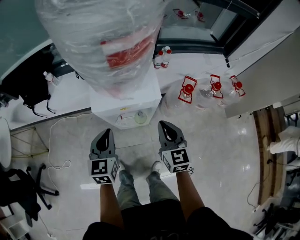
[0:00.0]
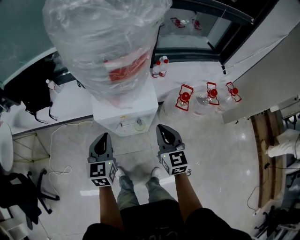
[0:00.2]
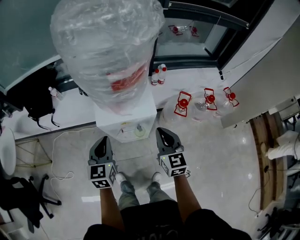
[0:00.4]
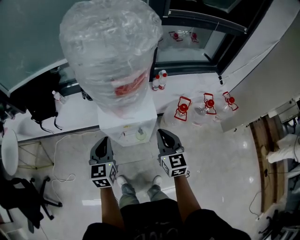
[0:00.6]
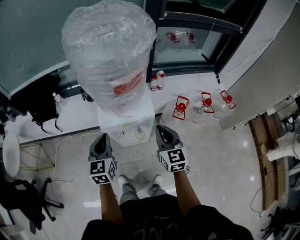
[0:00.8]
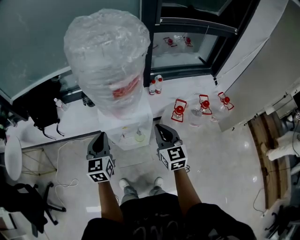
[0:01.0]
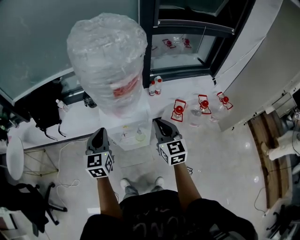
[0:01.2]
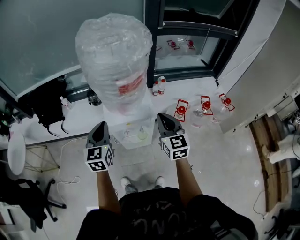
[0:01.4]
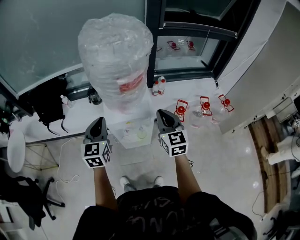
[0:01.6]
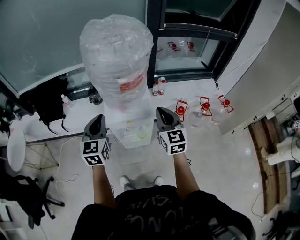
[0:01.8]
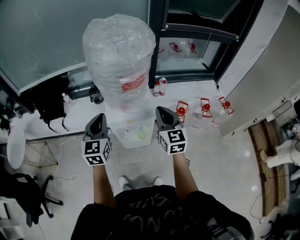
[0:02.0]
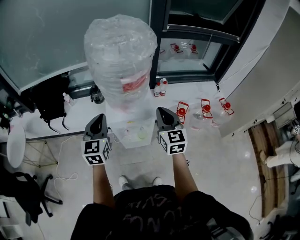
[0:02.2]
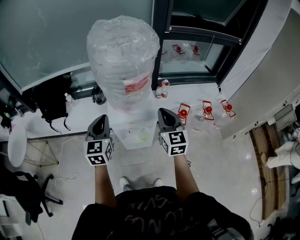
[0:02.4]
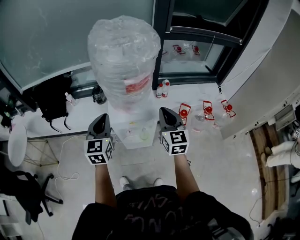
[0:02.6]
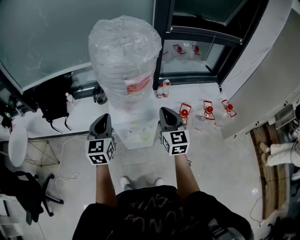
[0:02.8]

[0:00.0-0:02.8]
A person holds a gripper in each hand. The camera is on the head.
0:00.0 to 0:01.4: The grippers both shift upward by about 20 cm.
0:01.4 to 0:02.8: The grippers make only small movements.

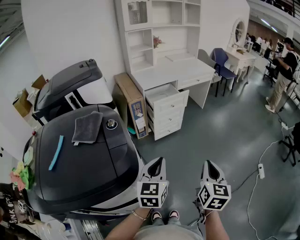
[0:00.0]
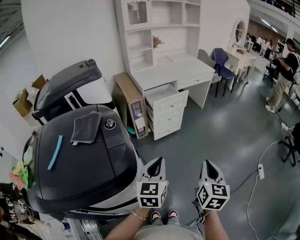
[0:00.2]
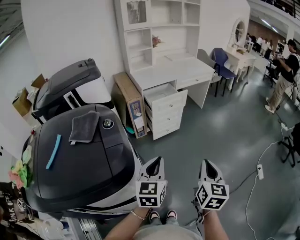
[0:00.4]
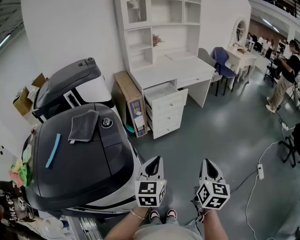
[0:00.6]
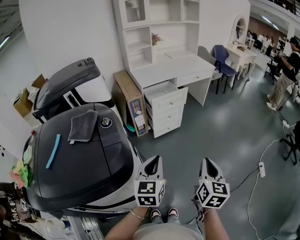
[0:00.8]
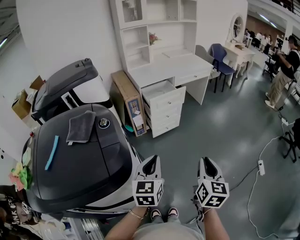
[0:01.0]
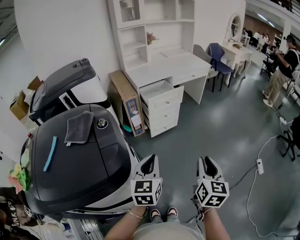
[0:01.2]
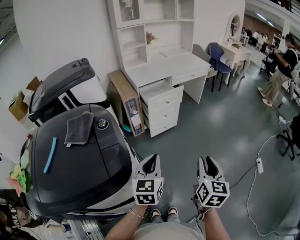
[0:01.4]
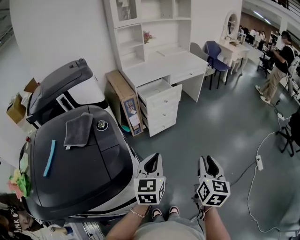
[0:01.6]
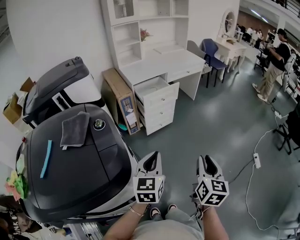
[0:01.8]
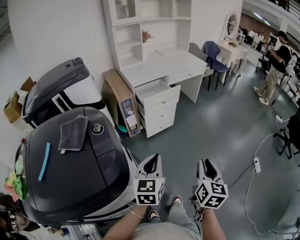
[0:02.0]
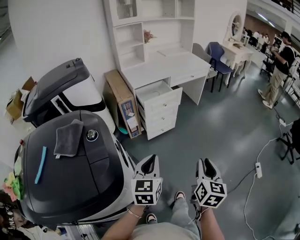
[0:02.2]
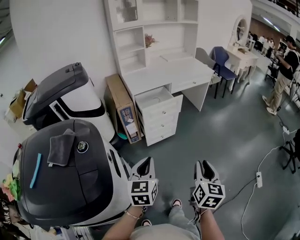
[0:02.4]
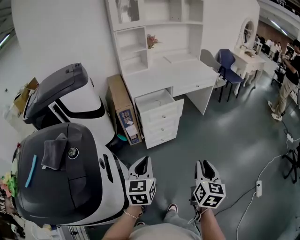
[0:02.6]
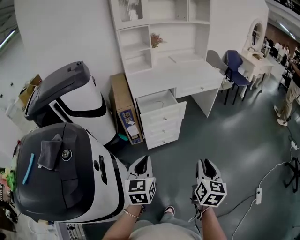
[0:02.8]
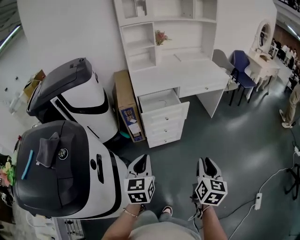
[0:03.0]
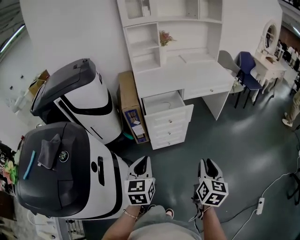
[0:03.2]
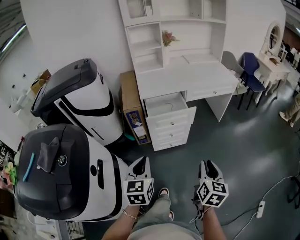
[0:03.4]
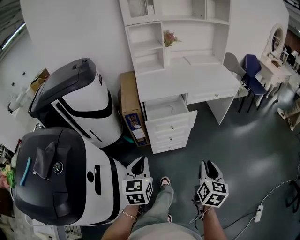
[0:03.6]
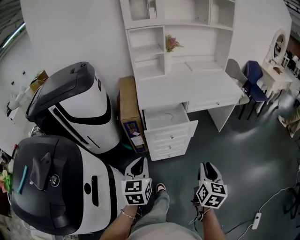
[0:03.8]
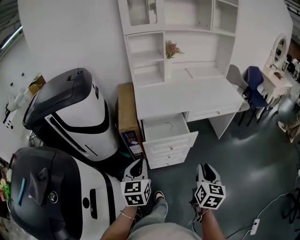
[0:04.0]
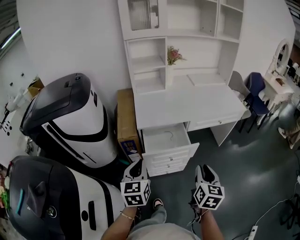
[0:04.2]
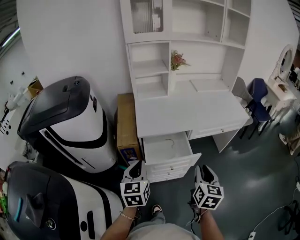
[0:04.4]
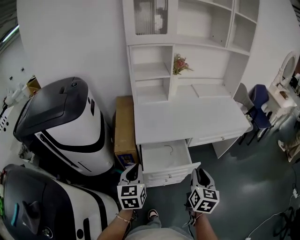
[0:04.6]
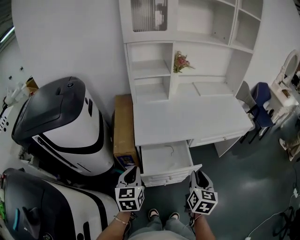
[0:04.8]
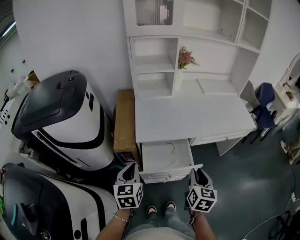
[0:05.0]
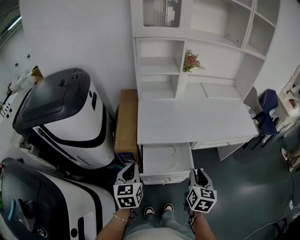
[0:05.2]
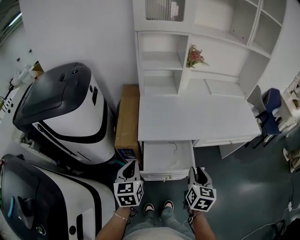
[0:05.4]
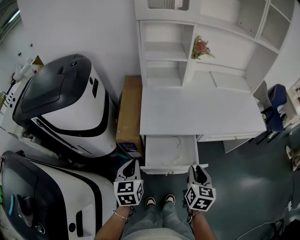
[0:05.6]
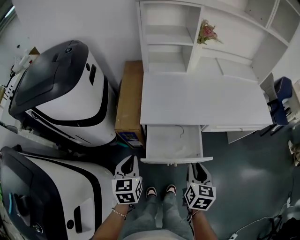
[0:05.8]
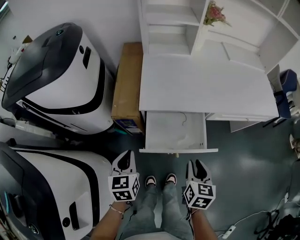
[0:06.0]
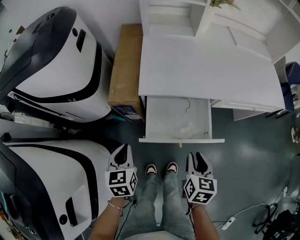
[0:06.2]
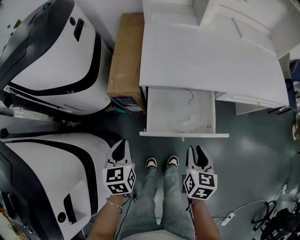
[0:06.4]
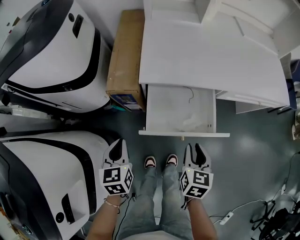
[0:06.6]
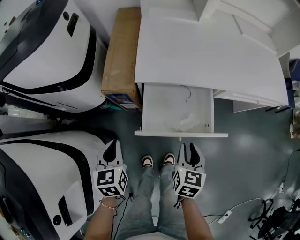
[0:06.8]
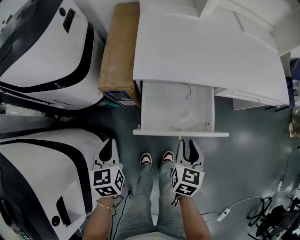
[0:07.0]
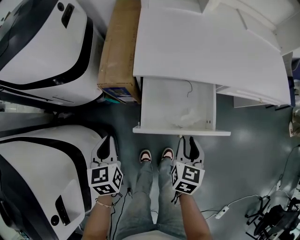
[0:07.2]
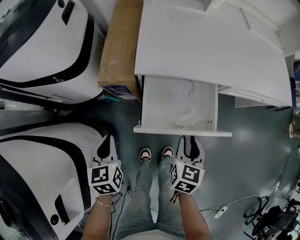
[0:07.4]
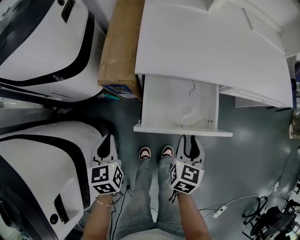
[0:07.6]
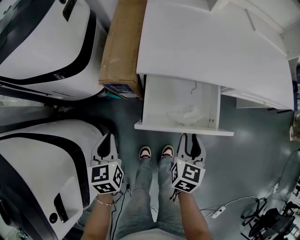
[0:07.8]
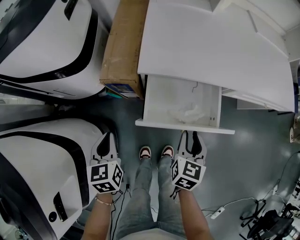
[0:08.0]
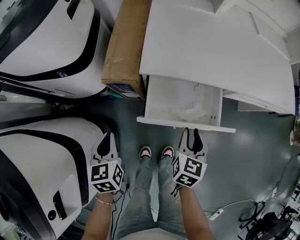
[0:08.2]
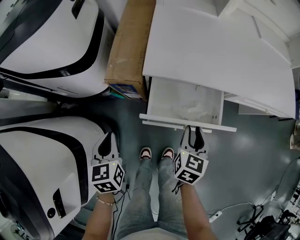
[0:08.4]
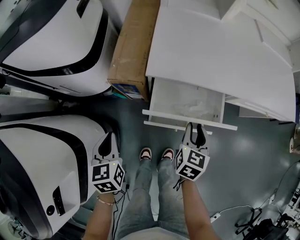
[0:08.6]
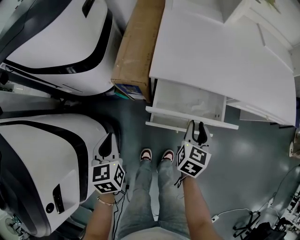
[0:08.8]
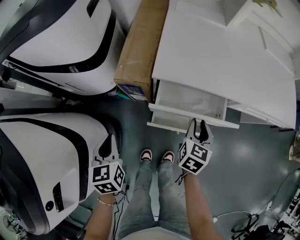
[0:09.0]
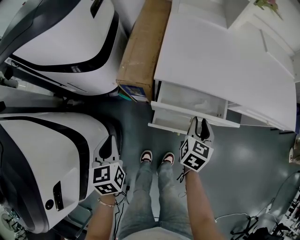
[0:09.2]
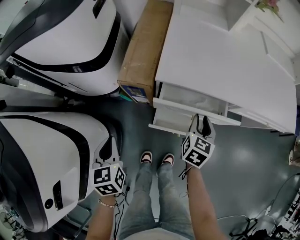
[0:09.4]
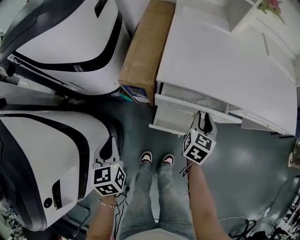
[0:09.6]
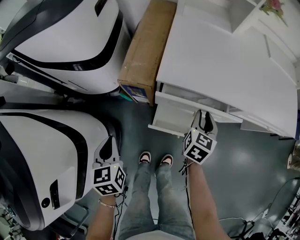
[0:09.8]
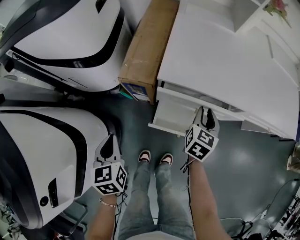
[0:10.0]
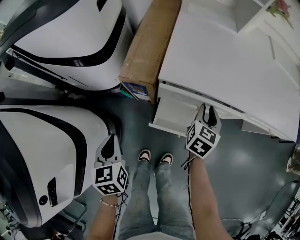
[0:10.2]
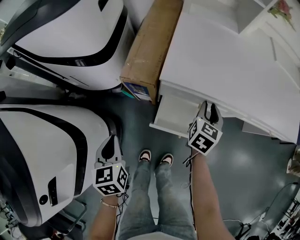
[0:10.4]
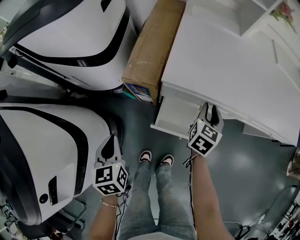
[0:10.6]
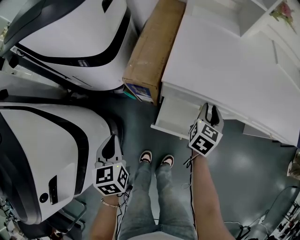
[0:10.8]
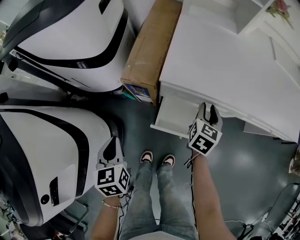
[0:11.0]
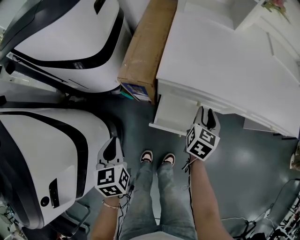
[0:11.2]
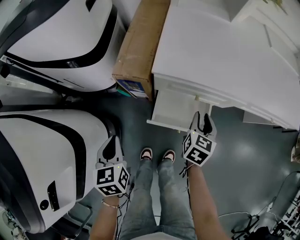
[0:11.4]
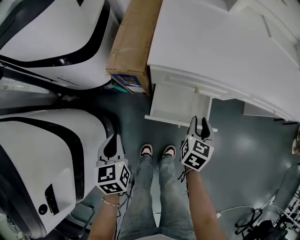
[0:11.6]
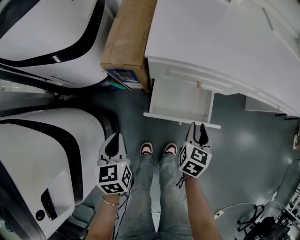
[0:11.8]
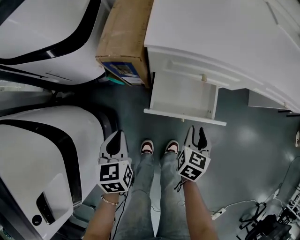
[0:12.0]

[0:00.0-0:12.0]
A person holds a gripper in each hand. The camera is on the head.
0:00.0 to 0:01.6: The right gripper opens up.
0:01.6 to 0:03.0: The left gripper travels forward by about 20 cm, and turns by some 20 degrees; the right gripper moves forward and to the right, some 30 cm.
0:03.0 to 0:04.4: Both grippers move forward, roughly 35 cm.
0:04.4 to 0:06.0: The left gripper is displaced downward by some 15 cm. Meanwhile the right gripper moves downward and forward, about 15 cm, and rotates approximately 20 degrees.
0:06.0 to 0:07.6: The right gripper travels downward by some 10 cm; the left gripper heads downward and to the left, covering about 10 cm.
0:07.6 to 0:09.0: The right gripper shifts some 10 cm forward.
0:09.0 to 0:10.4: The right gripper goes approximately 10 cm forward.
0:10.4 to 0:12.0: The left gripper goes some 10 cm downward. Meanwhile the right gripper shifts approximately 25 cm backward and downward.

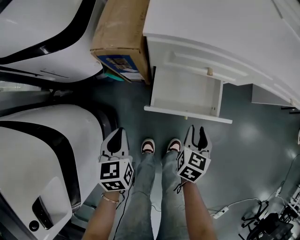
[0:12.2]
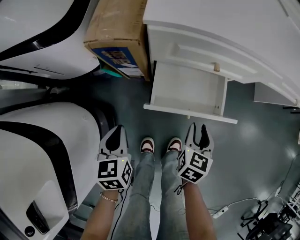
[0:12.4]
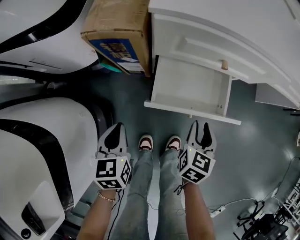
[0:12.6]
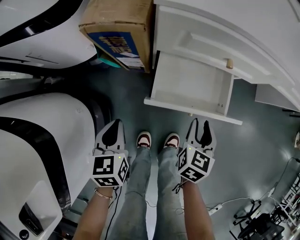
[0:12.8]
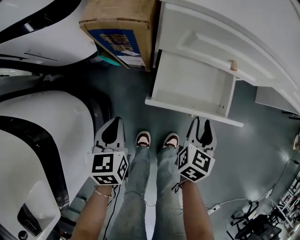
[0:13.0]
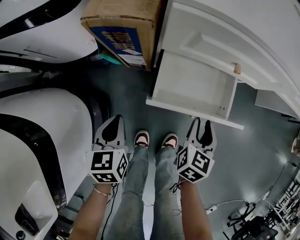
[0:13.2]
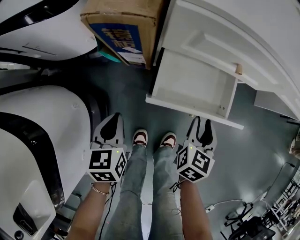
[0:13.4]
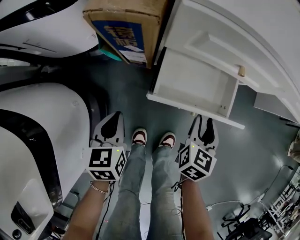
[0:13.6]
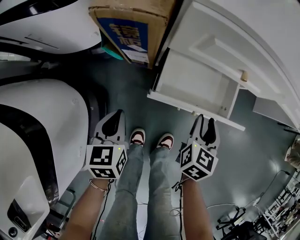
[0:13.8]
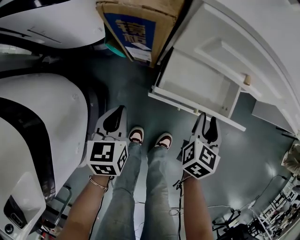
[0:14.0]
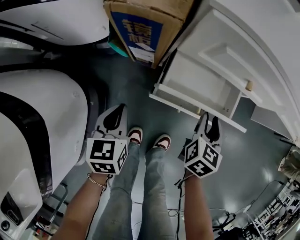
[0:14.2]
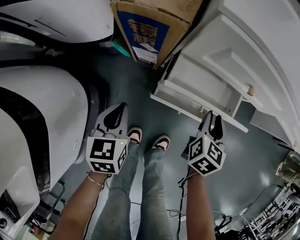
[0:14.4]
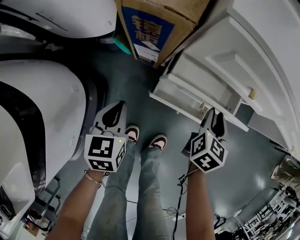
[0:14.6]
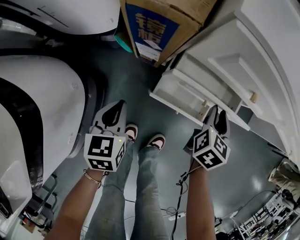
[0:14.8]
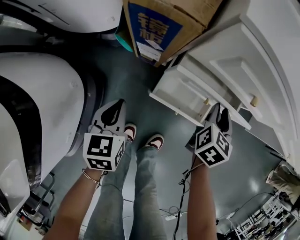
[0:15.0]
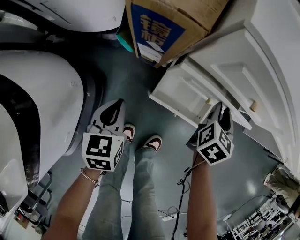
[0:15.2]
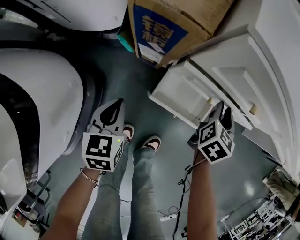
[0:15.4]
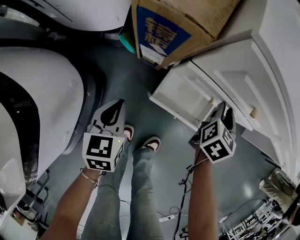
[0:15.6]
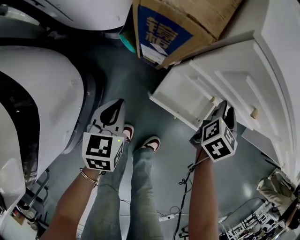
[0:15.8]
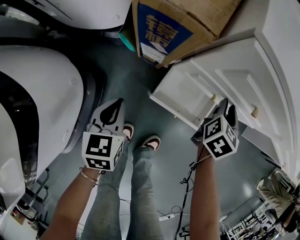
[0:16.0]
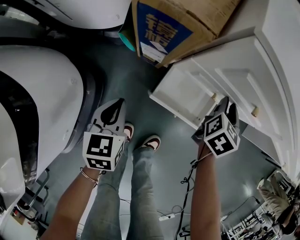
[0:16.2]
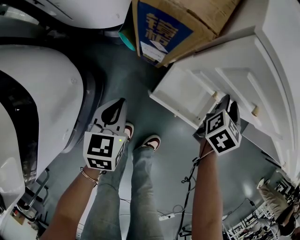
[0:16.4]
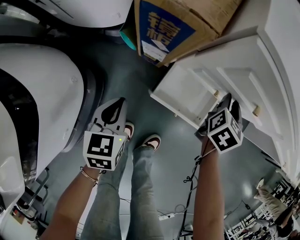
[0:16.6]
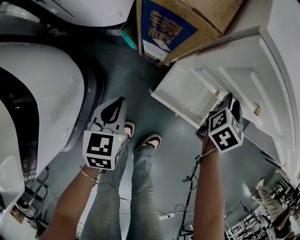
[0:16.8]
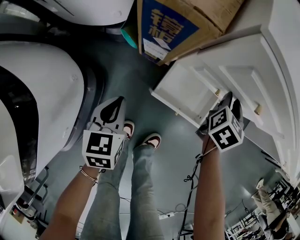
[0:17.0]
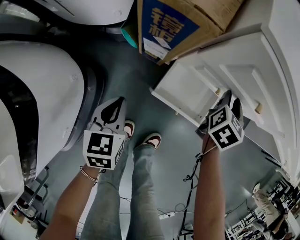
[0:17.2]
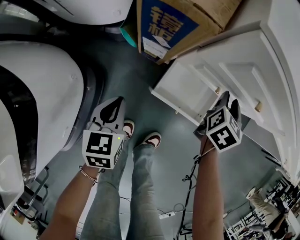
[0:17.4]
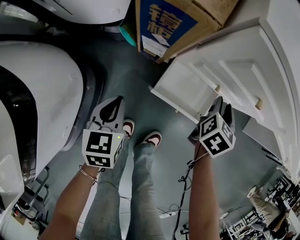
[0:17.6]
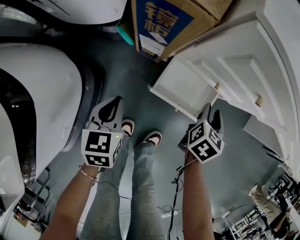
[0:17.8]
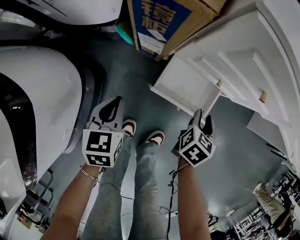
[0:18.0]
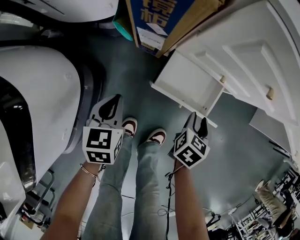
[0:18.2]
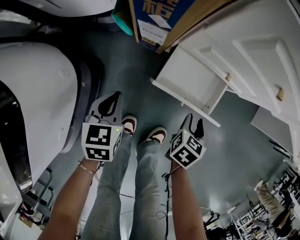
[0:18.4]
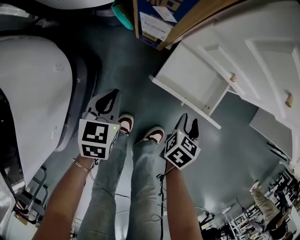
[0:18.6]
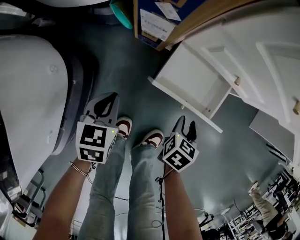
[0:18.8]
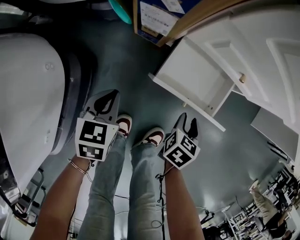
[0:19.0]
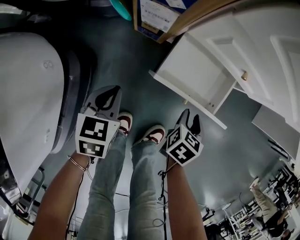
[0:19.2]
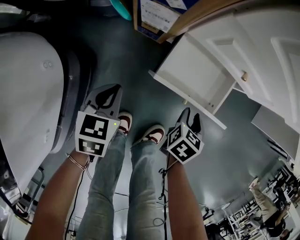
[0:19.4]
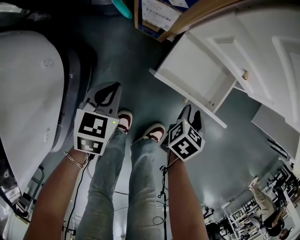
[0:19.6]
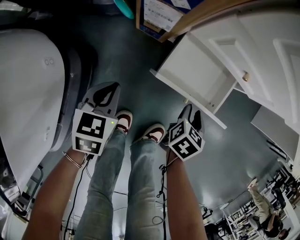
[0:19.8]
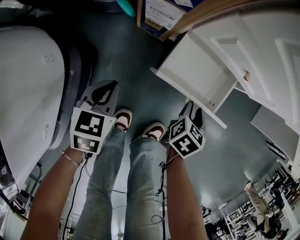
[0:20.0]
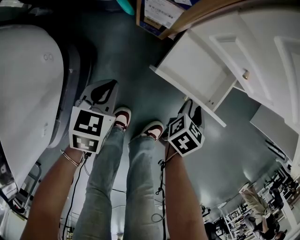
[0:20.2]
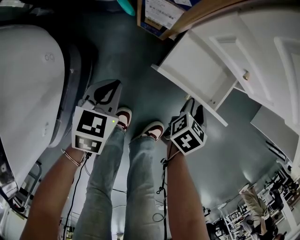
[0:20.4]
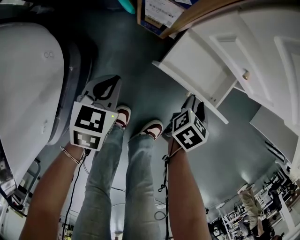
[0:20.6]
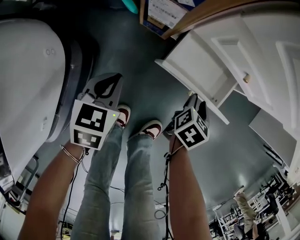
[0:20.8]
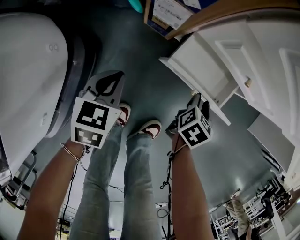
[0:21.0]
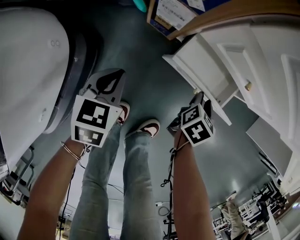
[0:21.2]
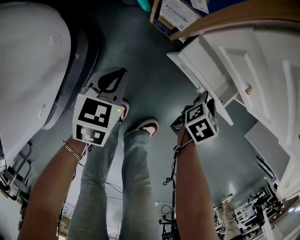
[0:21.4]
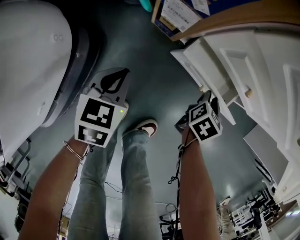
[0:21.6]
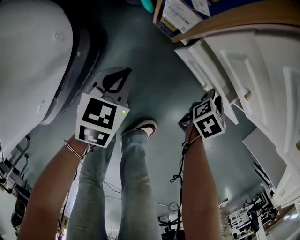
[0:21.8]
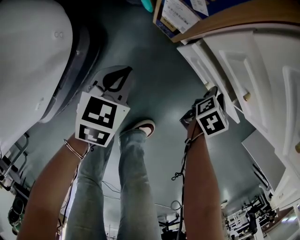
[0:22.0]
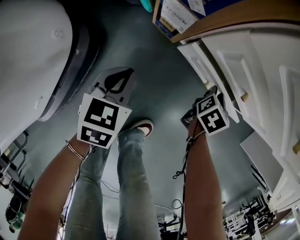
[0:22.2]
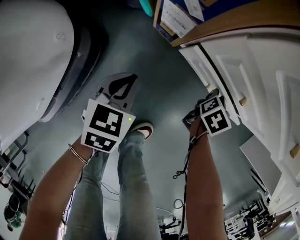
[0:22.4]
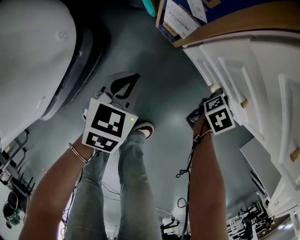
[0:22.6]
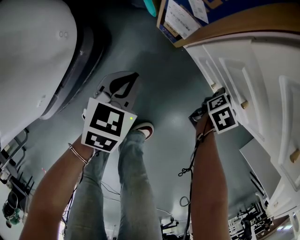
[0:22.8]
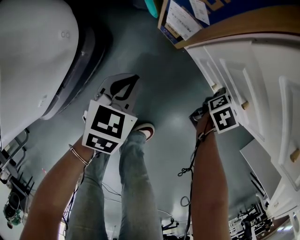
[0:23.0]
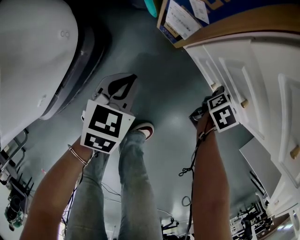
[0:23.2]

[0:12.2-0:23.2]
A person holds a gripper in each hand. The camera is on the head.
0:12.2 to 0:13.8: The right gripper shifts about 5 cm forward, while the left gripper is displaced downward by roughly 10 cm.
0:13.8 to 0:15.4: The right gripper heads forward, covering about 15 cm.
0:15.4 to 0:17.0: The grippers make only small movements.
0:17.0 to 0:18.4: The left gripper moves downward, approximately 5 cm. The right gripper is displaced backward and downward by some 25 cm.
0:18.4 to 0:20.0: Both grippers travel together downward, about 5 cm.
0:20.0 to 0:21.6: The right gripper heads forward, covering about 10 cm.
0:21.6 to 0:23.2: The right gripper heads forward, covering approximately 10 cm.
